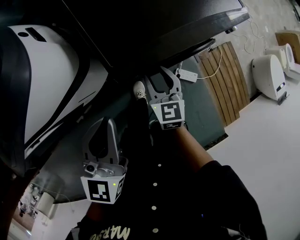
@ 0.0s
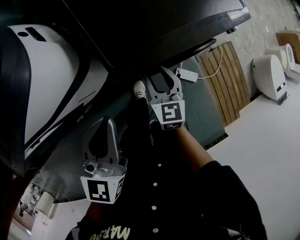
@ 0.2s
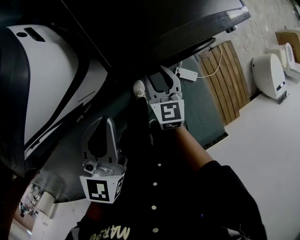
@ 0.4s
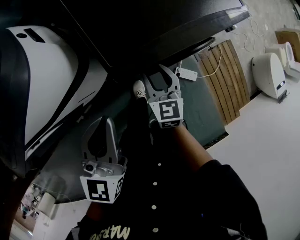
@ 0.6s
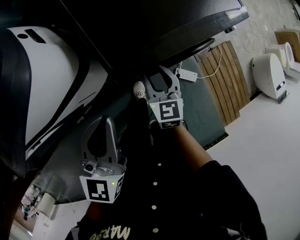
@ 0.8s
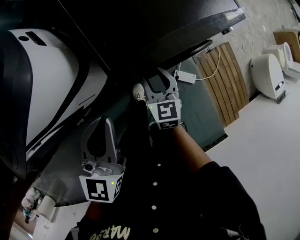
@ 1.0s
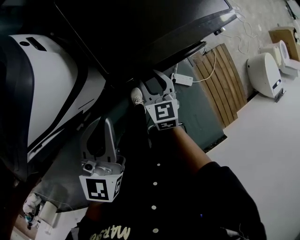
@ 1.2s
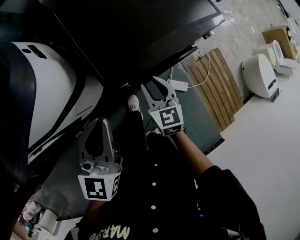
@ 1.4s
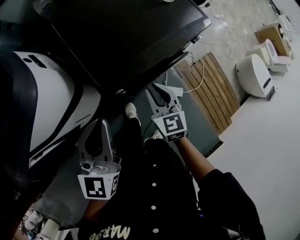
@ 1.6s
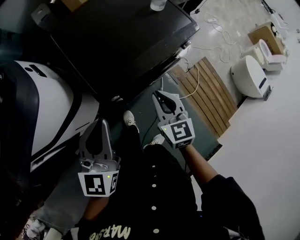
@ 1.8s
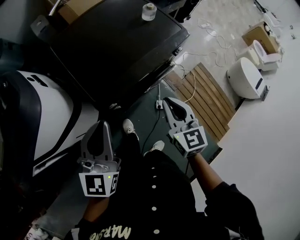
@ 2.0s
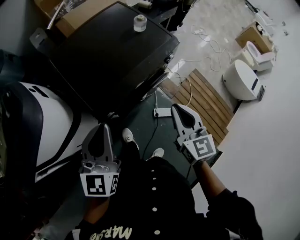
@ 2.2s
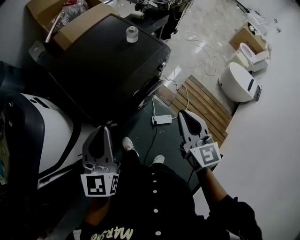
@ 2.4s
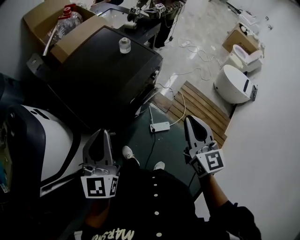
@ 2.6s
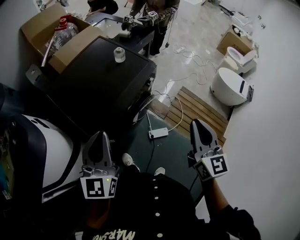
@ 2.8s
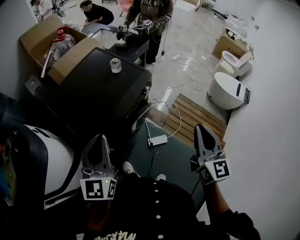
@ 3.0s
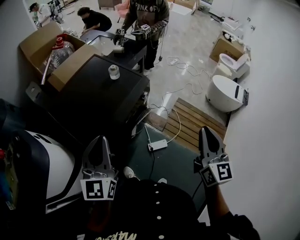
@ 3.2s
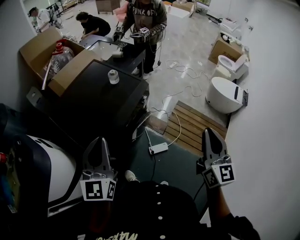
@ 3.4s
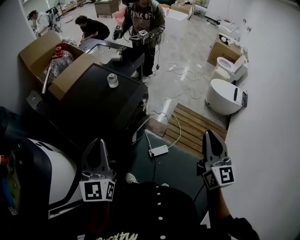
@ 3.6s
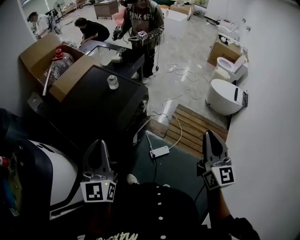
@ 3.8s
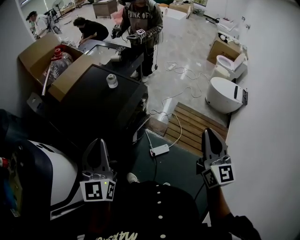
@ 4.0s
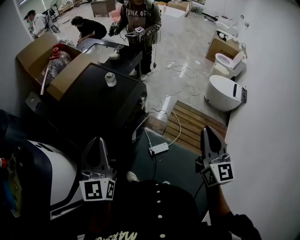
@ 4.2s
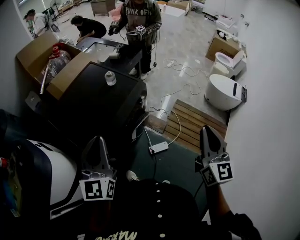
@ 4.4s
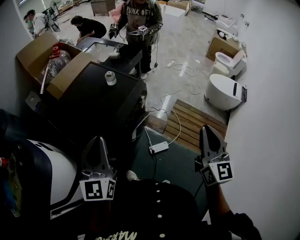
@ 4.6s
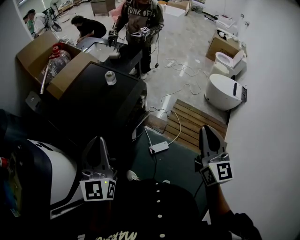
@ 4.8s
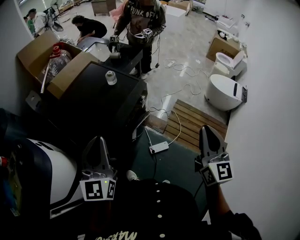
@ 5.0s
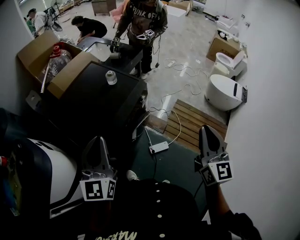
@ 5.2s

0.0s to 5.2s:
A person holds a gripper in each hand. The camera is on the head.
0.0s to 1.8s: The right gripper moves upward and to the right, some 15 cm, and closes up. The left gripper shifts roughly 10 cm upward and to the right.
1.8s to 3.4s: The right gripper ends up roughly 40 cm from where it was, and rotates approximately 40 degrees. The left gripper changes place by some 15 cm.
3.4s to 5.2s: The two grippers keep their place.

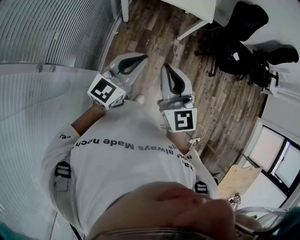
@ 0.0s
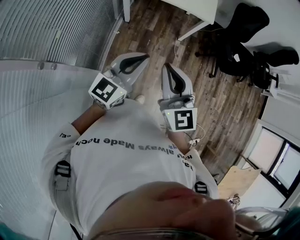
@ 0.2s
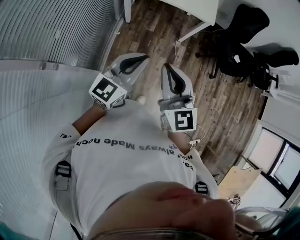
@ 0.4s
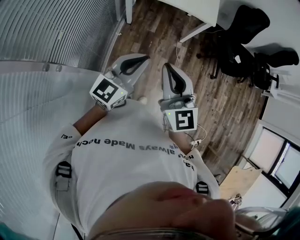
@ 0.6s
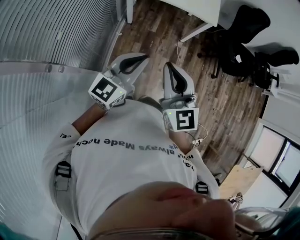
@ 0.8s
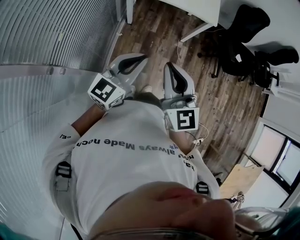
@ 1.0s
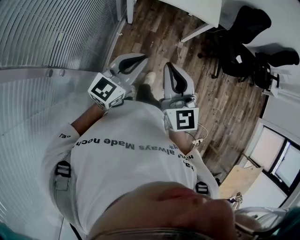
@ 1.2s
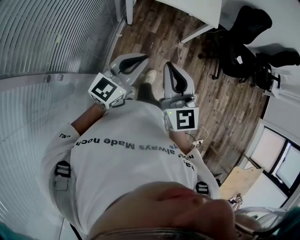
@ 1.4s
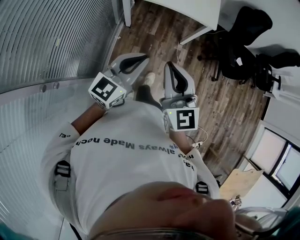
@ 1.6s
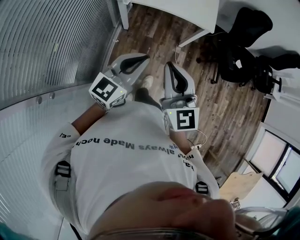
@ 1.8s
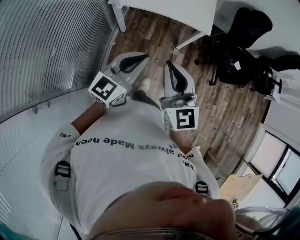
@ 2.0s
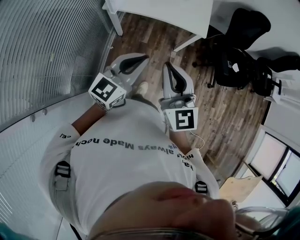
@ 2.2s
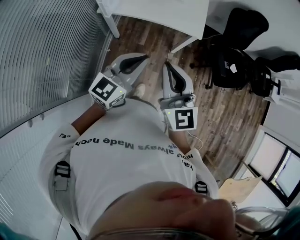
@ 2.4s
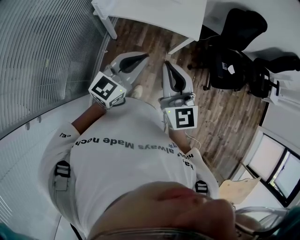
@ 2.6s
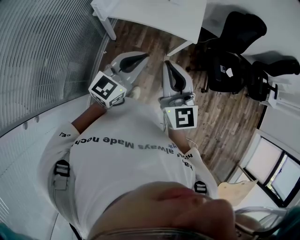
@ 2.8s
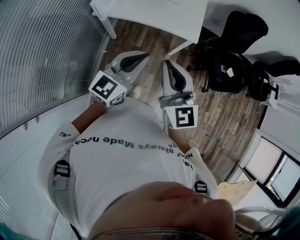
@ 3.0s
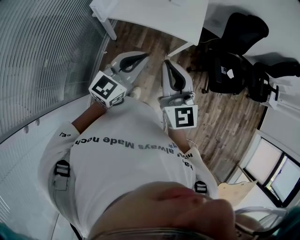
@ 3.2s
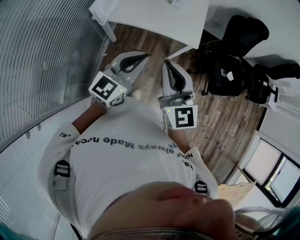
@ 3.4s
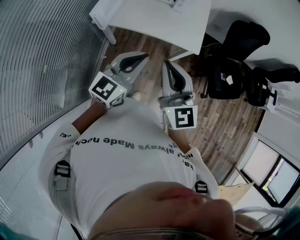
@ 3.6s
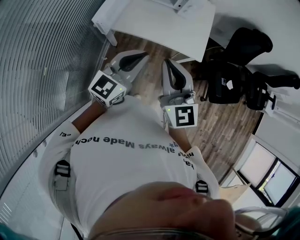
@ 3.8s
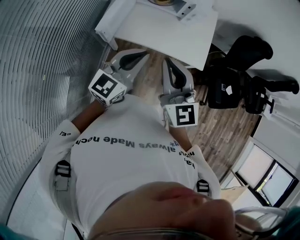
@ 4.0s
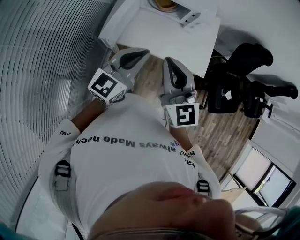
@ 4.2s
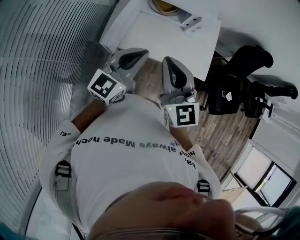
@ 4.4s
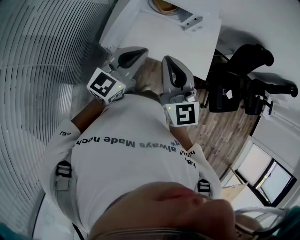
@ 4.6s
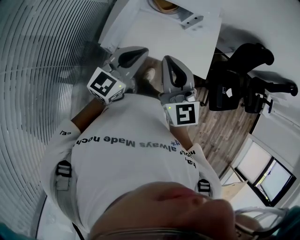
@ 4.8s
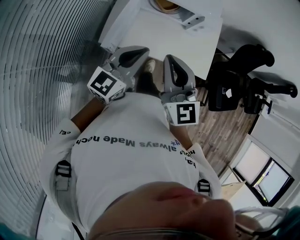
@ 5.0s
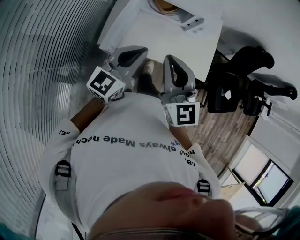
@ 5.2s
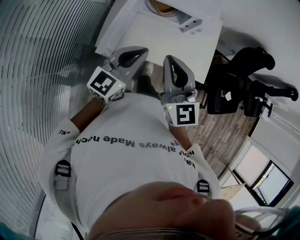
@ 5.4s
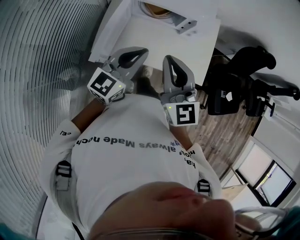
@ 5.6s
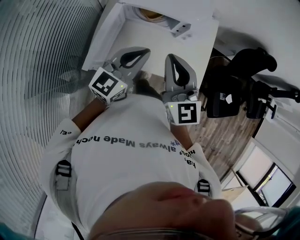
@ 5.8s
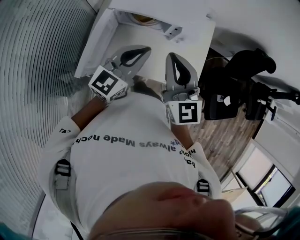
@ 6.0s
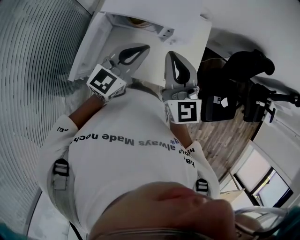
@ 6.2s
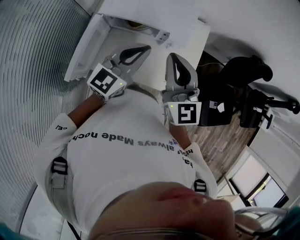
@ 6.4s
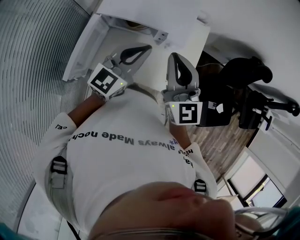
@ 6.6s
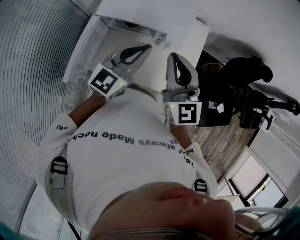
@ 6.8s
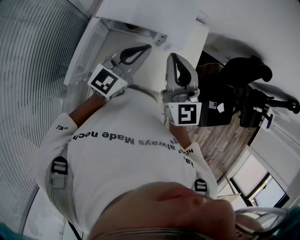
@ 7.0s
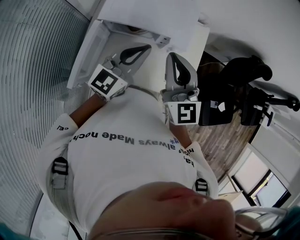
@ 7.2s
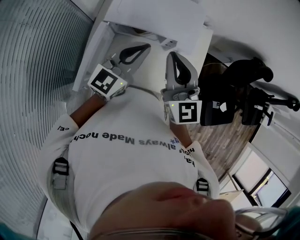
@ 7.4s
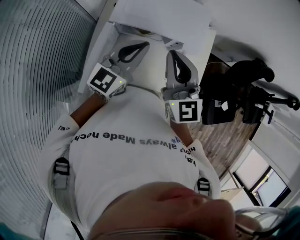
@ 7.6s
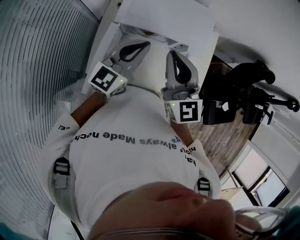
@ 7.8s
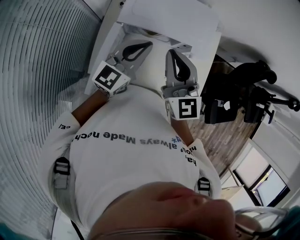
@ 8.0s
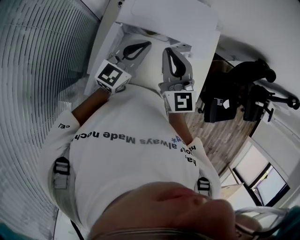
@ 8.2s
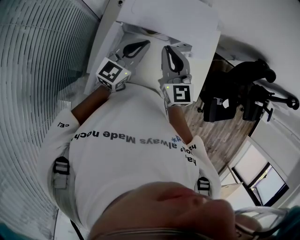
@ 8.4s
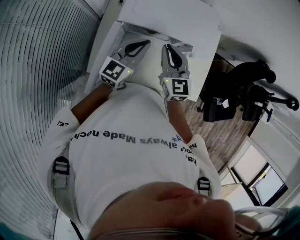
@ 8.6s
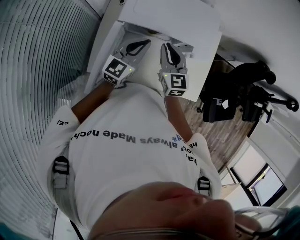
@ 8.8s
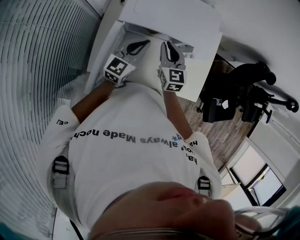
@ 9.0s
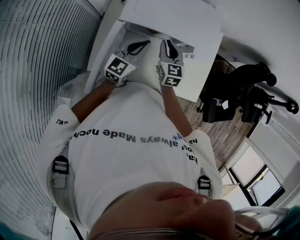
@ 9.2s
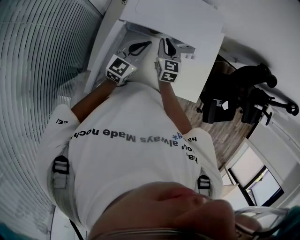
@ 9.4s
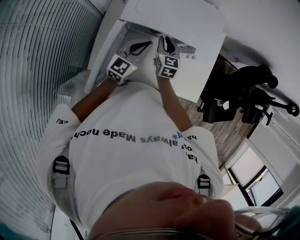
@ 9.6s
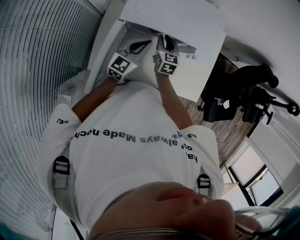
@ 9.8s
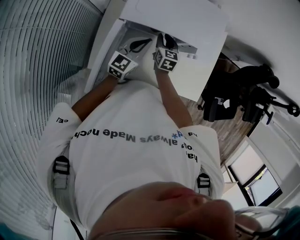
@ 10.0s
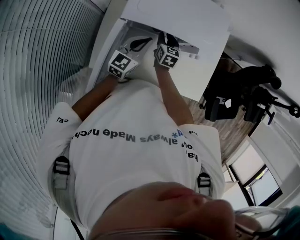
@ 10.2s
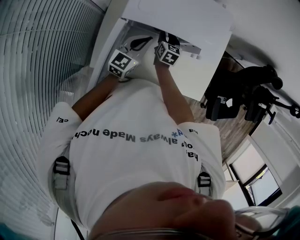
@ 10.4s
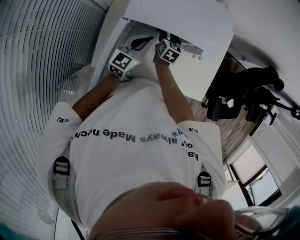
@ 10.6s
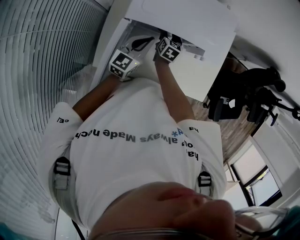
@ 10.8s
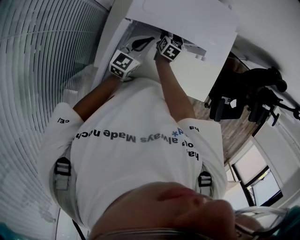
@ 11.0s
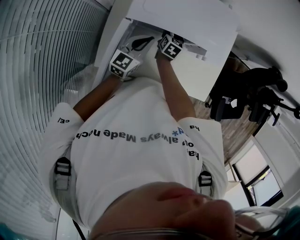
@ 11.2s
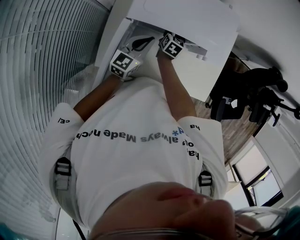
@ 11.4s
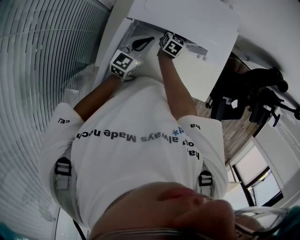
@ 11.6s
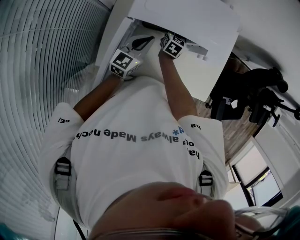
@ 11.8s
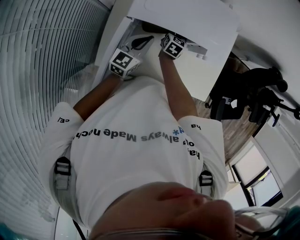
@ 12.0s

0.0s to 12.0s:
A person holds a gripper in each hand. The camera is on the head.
0.0s to 1.6s: Both grippers travel together forward, some 10 cm.
1.6s to 3.0s: Both grippers travel together forward and to the right, some 25 cm.
3.0s to 4.4s: The grippers both shift forward and to the left by roughly 35 cm.
4.4s to 6.0s: Both grippers travel together forward and to the right, some 25 cm.
6.0s to 7.6s: Both grippers move forward, roughly 10 cm. The right gripper moves roughly 10 cm to the right and comes back.
7.6s to 9.0s: The left gripper is displaced downward by some 15 cm; the right gripper is displaced downward by approximately 20 cm, and turns by approximately 20 degrees.
9.0s to 10.4s: The right gripper heads downward and forward, covering roughly 20 cm, and swivels roughly 30 degrees; the left gripper is displaced downward by some 5 cm.
10.4s to 12.0s: The right gripper closes its fingers.

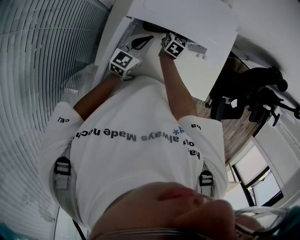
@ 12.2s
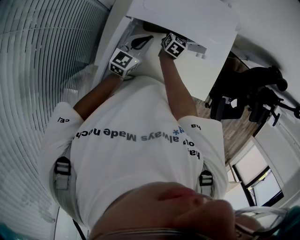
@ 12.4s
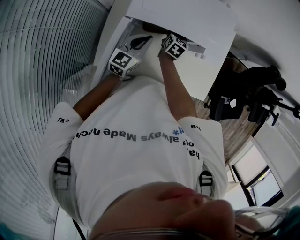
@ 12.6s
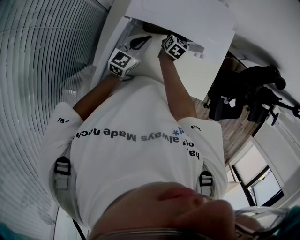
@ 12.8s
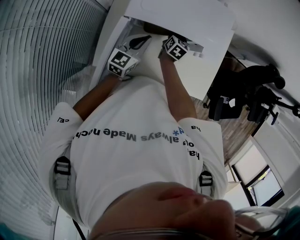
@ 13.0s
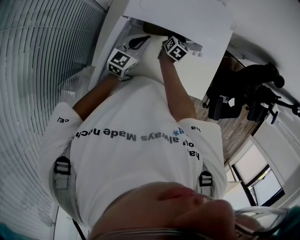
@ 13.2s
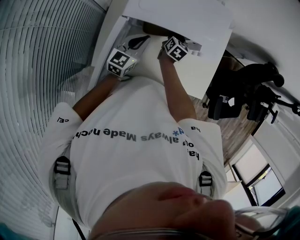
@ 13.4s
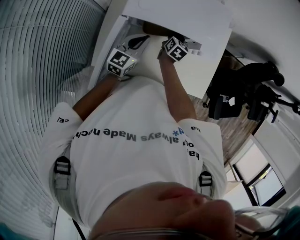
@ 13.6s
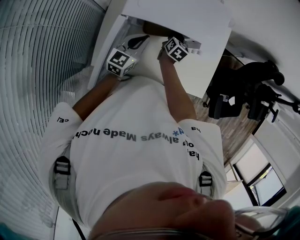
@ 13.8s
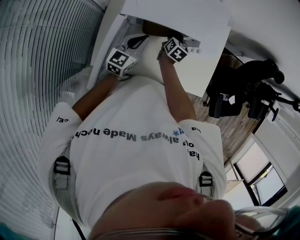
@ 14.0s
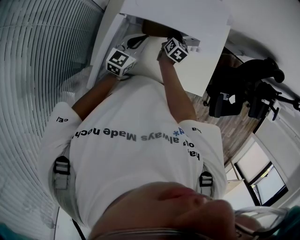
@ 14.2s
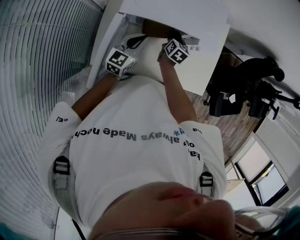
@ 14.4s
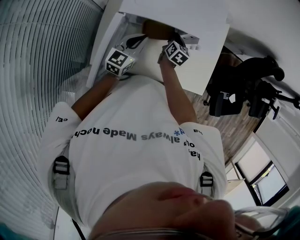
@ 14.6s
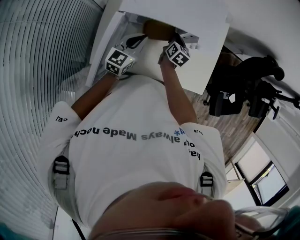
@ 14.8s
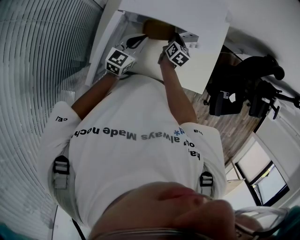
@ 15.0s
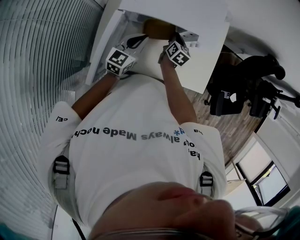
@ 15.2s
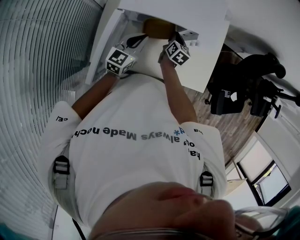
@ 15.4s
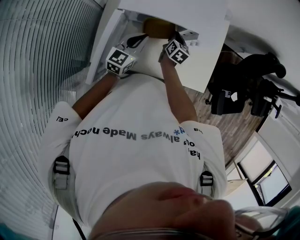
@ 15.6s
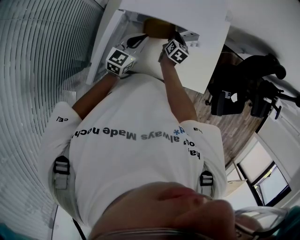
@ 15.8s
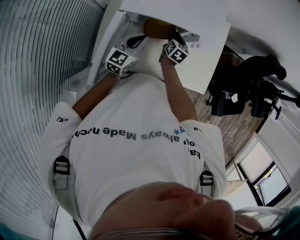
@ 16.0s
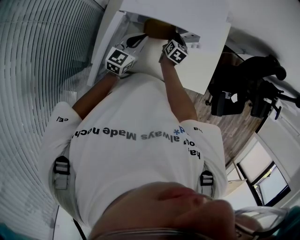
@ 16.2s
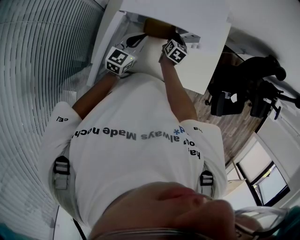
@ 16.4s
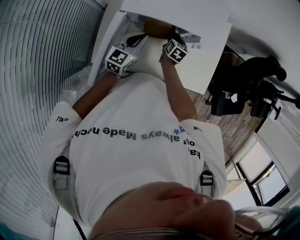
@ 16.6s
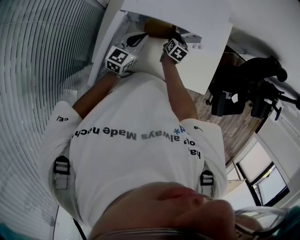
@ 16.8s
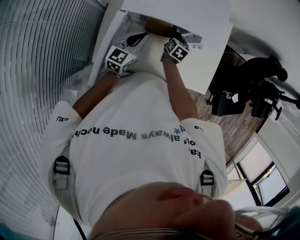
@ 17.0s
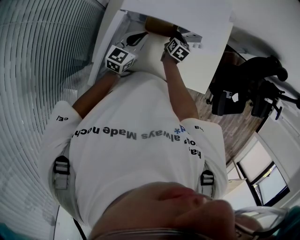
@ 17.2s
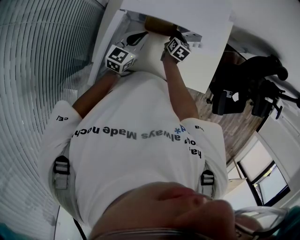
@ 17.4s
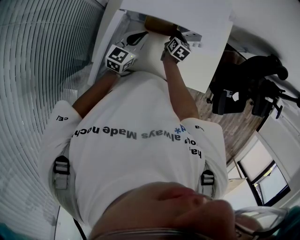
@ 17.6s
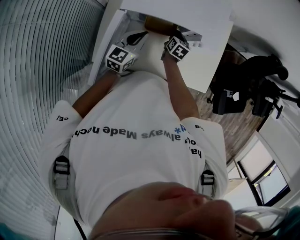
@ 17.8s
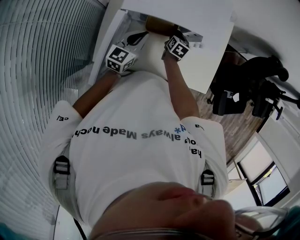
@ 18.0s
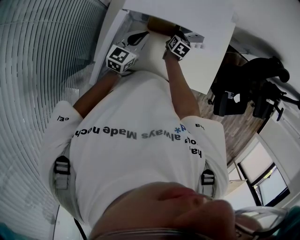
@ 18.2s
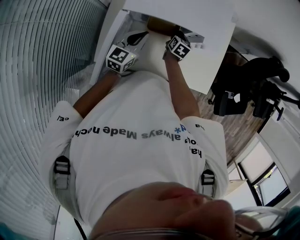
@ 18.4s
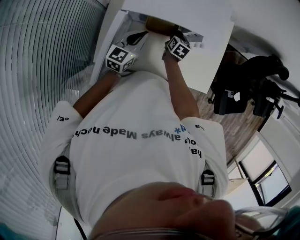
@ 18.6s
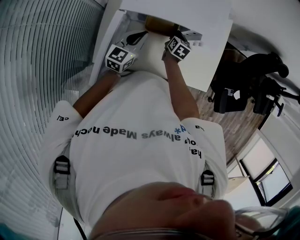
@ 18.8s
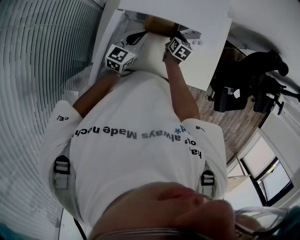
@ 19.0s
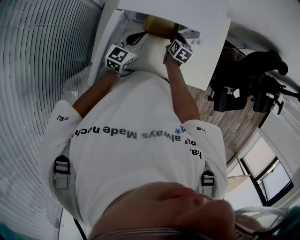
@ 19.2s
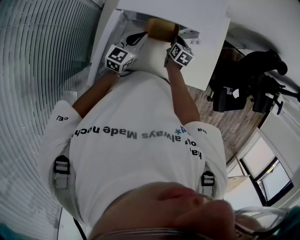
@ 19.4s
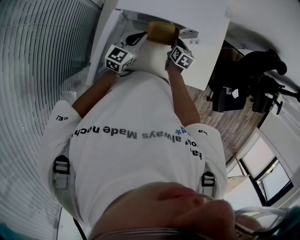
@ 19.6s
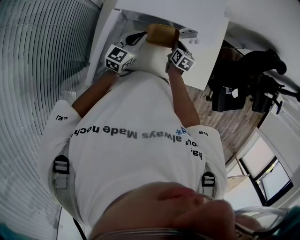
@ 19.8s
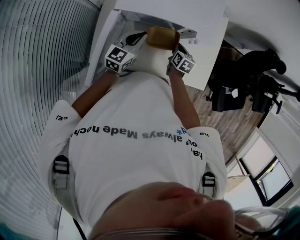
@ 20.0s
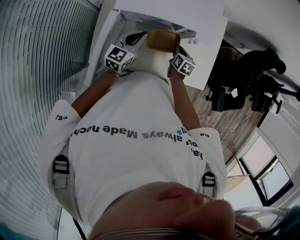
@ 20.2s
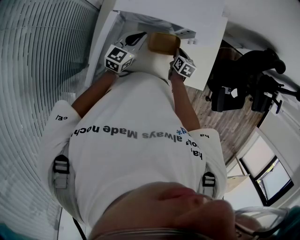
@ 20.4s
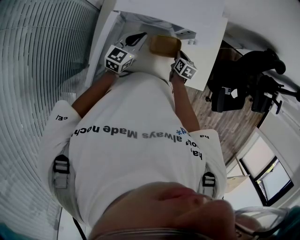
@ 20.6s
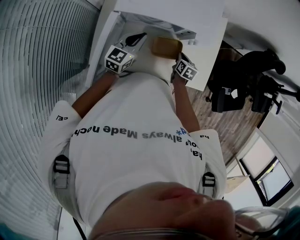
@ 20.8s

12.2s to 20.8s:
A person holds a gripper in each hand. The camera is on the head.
12.2s to 13.6s: The grippers make only small movements.
13.6s to 15.0s: The right gripper changes place by roughly 5 cm.
15.0s to 19.4s: The grippers move only a little.
19.4s to 20.8s: The right gripper heads to the right and backward, covering approximately 10 cm.
